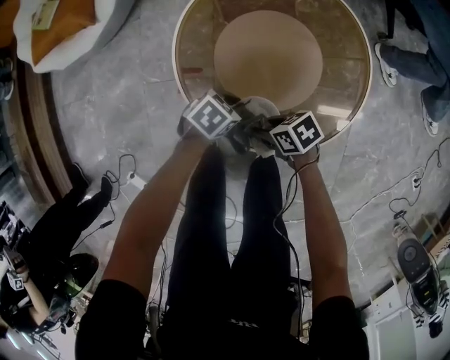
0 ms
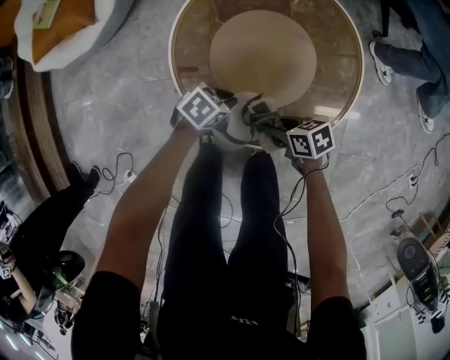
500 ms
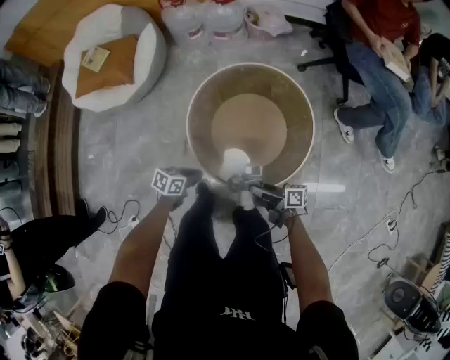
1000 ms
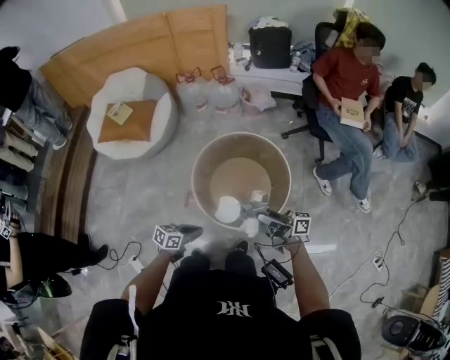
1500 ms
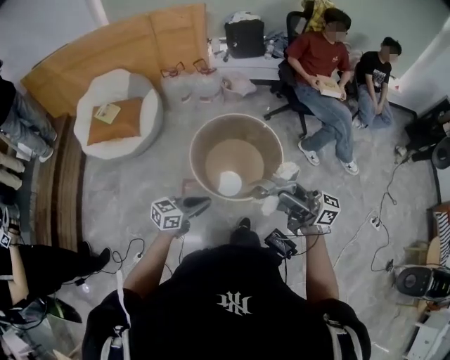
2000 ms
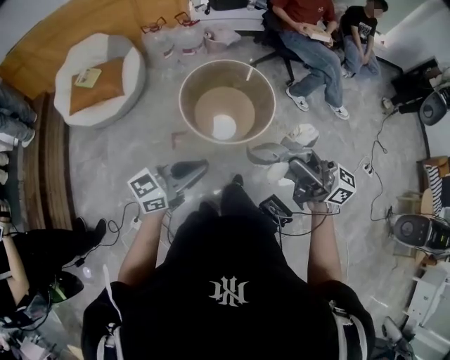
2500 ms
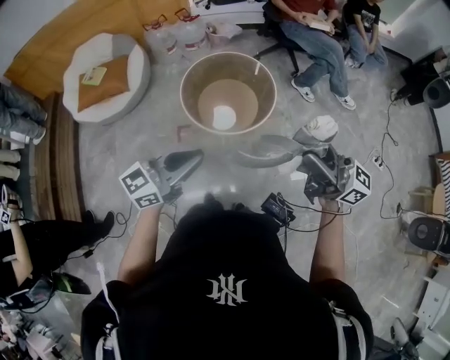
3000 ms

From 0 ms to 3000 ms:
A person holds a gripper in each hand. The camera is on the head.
From 0 ms to 1500 ms: Both grippers travel together upward, approximately 40 cm. The left gripper changes its angle by approximately 40 degrees. The right gripper points its fingers approximately 60 degrees further upward.
From 1500 ms to 3000 ms: The left gripper moves upward, roughly 30 cm, and points its fingers approximately 30 degrees further upward, while the right gripper shifts by roughly 40 cm, and twists some 40 degrees counterclockwise, seen from behind.

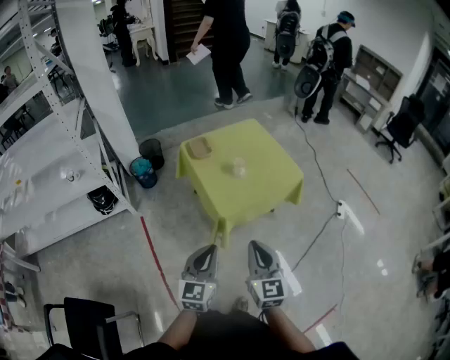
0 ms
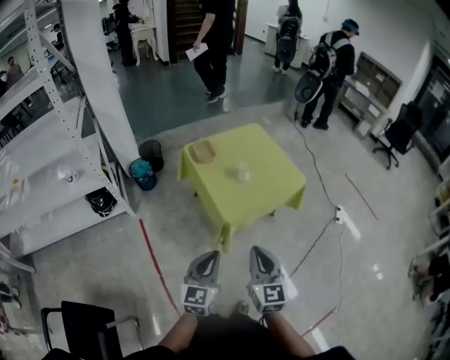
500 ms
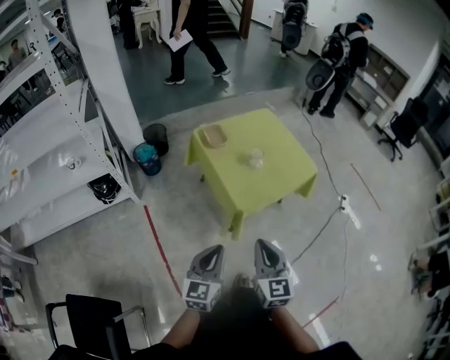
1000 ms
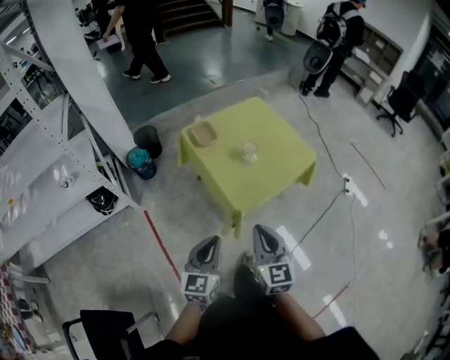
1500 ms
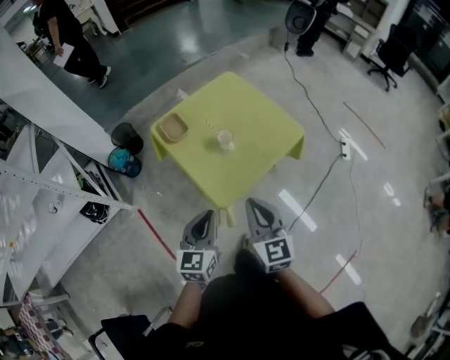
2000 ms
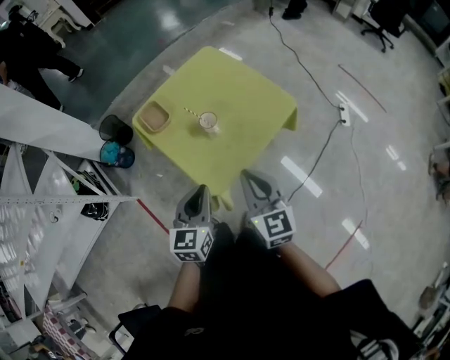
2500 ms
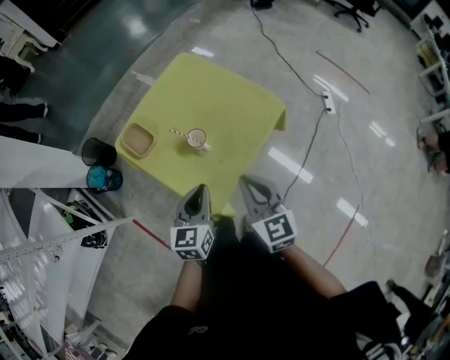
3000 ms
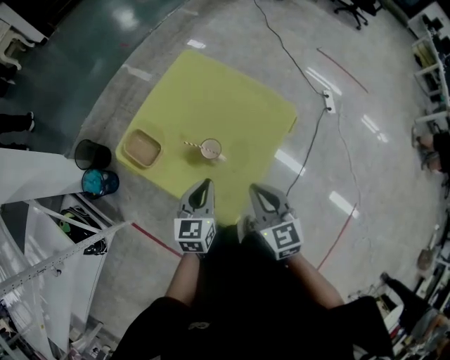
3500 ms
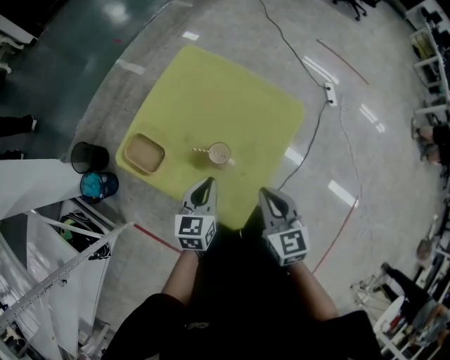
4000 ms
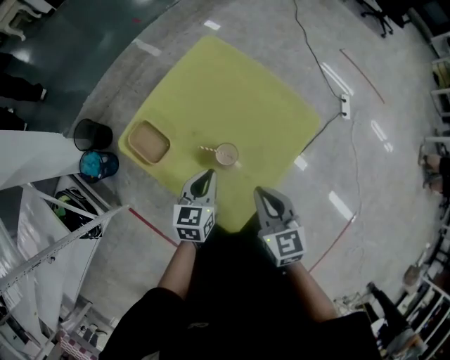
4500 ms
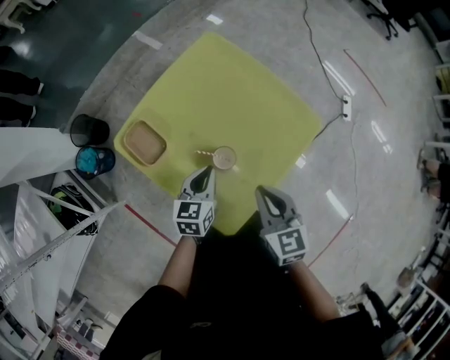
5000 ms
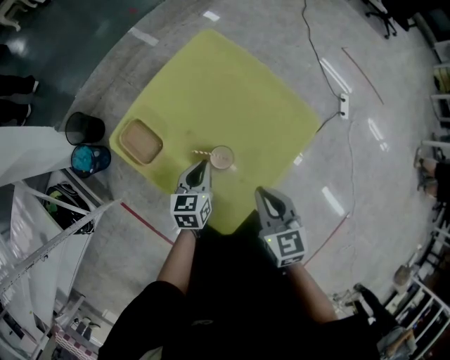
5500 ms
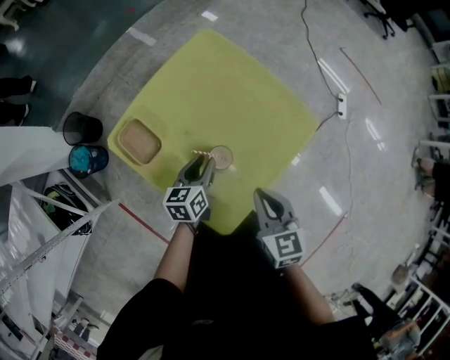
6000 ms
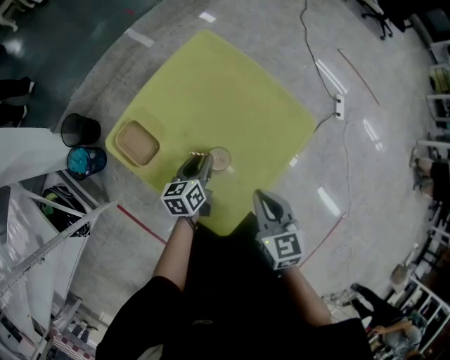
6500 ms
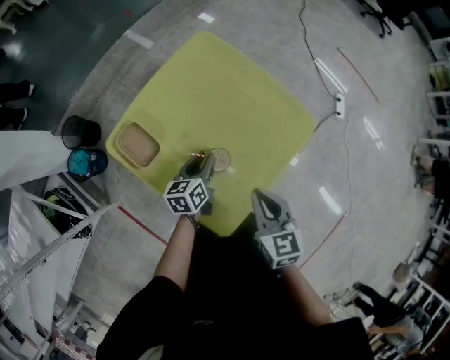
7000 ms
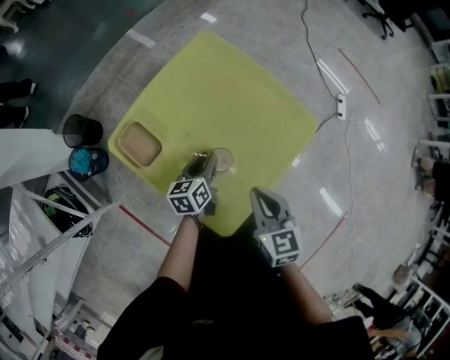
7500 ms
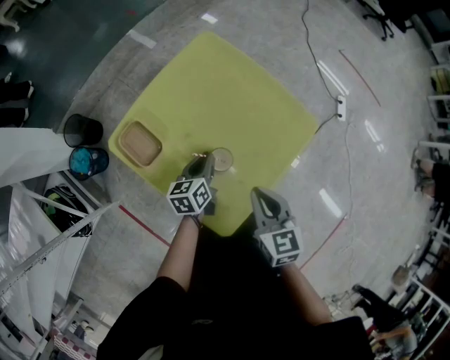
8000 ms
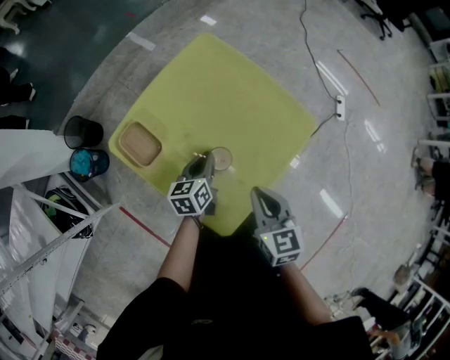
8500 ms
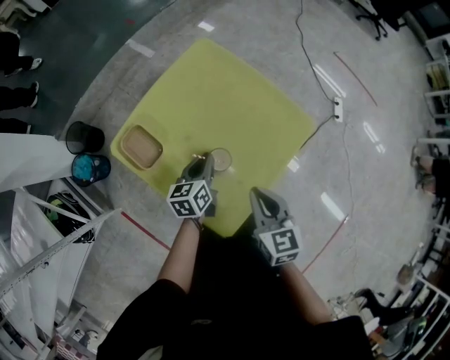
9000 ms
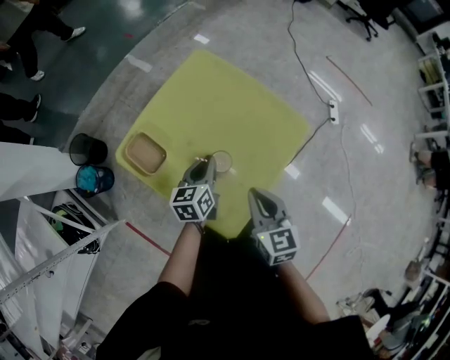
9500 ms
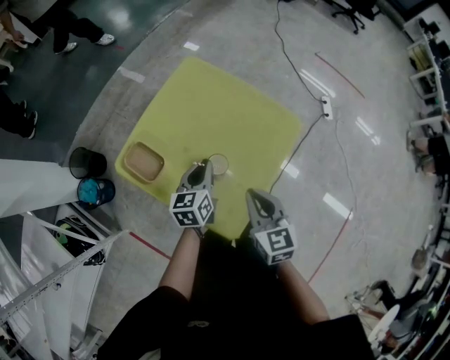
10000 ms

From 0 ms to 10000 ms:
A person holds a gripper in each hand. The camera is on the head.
From 0 ms to 2000 ms: The two grippers go roughly 20 cm forward.
From 2000 ms to 4000 ms: Both grippers move forward and downward, some 30 cm. The right gripper turns by about 20 degrees. The left gripper swivels some 30 degrees.
From 4000 ms to 6000 ms: The left gripper goes approximately 10 cm downward and forward, rotates about 20 degrees, and opens. The right gripper is displaced forward by about 5 cm.
From 6000 ms to 8000 ms: The grippers stay close to where they were, moving slightly.
From 8000 ms to 10000 ms: The right gripper ends up about 5 cm from where it was. The left gripper shifts approximately 10 cm upward.

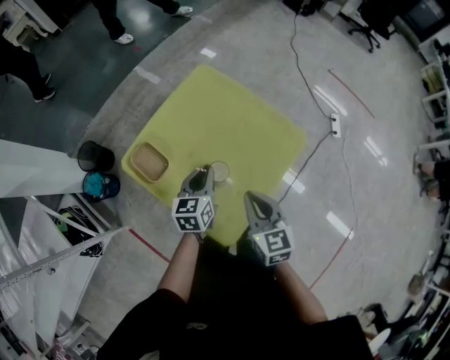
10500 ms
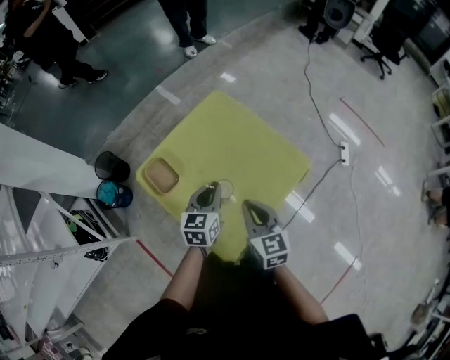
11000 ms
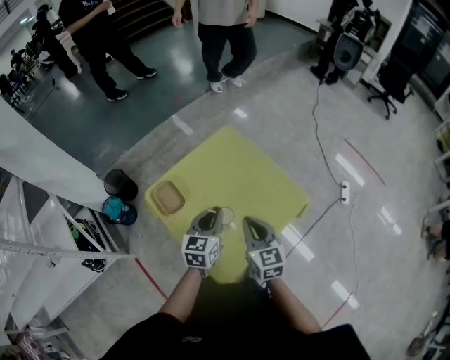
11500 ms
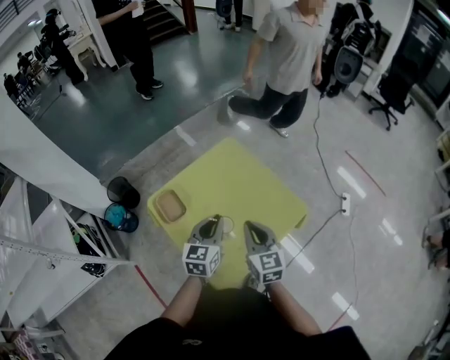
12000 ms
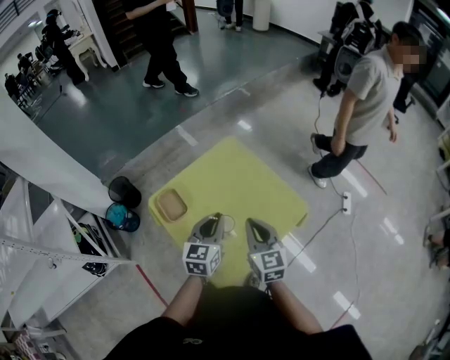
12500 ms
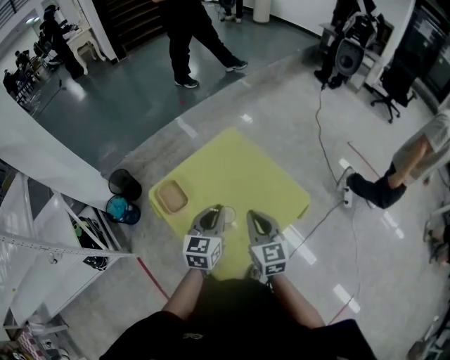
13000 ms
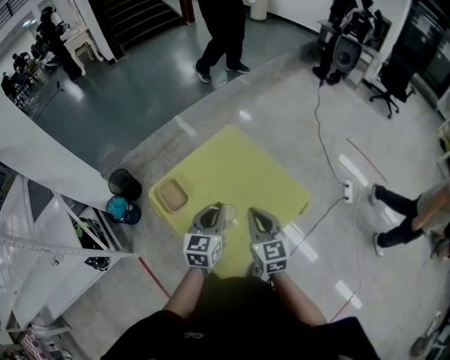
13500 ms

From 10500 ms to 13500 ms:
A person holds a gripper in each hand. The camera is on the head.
From 10500 ms to 12000 ms: The left gripper heads upward, covering roughly 10 cm. The right gripper shifts approximately 5 cm upward.
From 12000 ms to 13500 ms: Both grippers stay put.

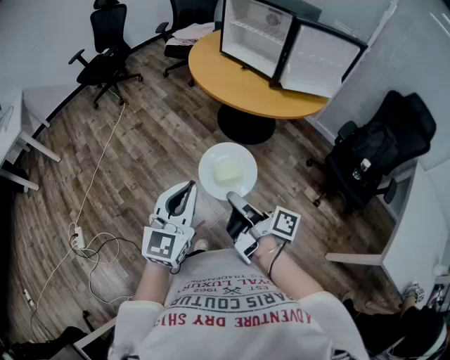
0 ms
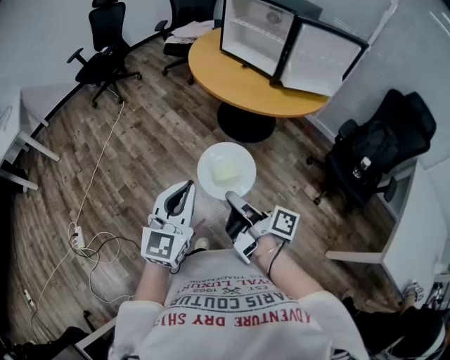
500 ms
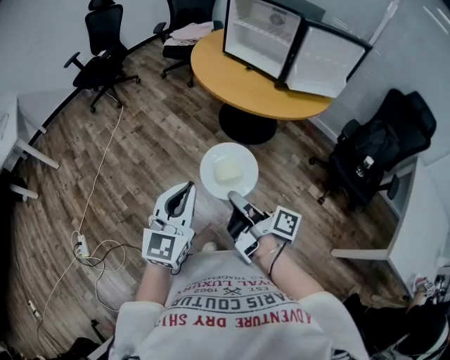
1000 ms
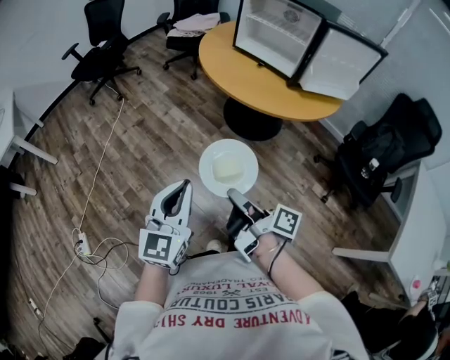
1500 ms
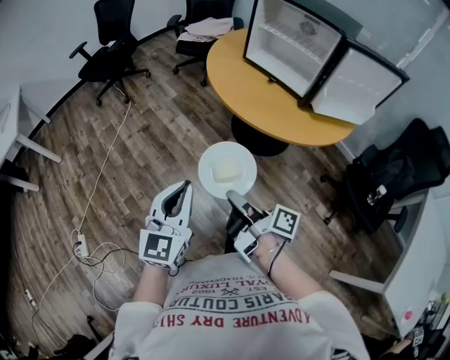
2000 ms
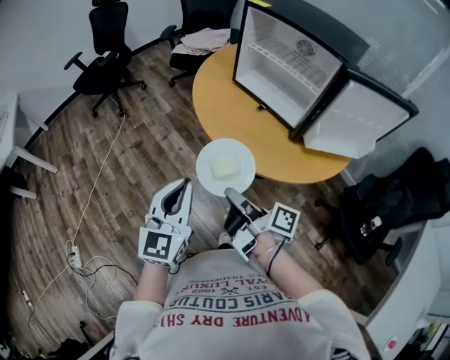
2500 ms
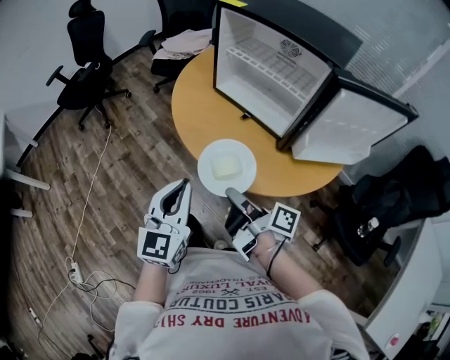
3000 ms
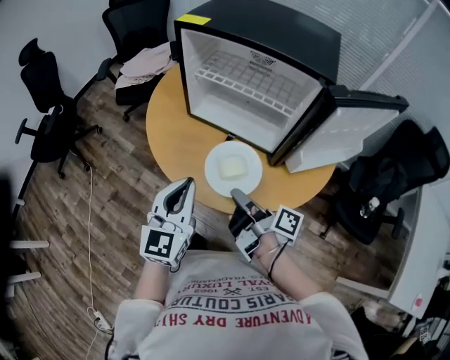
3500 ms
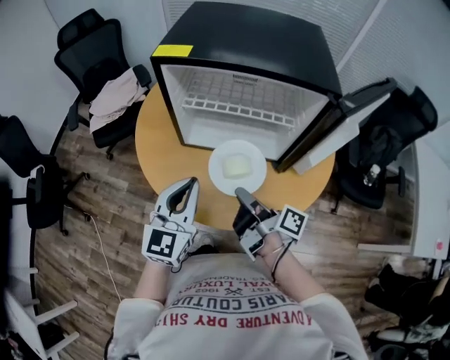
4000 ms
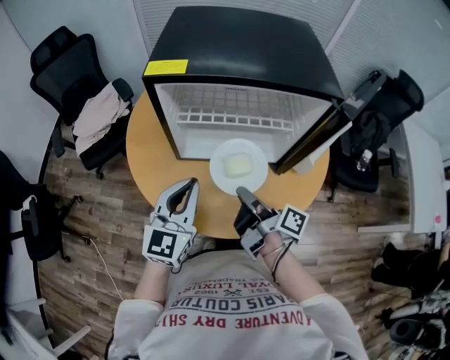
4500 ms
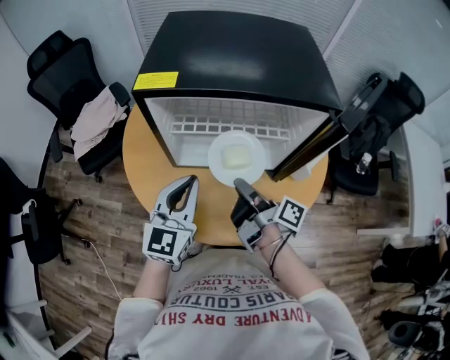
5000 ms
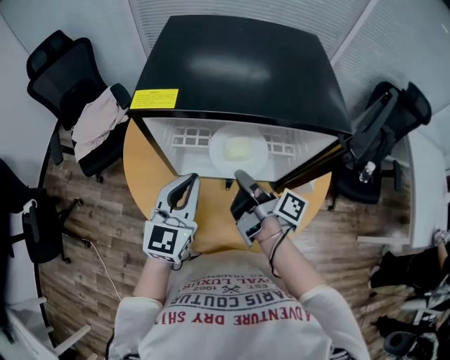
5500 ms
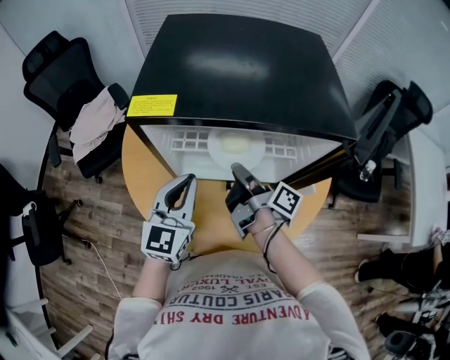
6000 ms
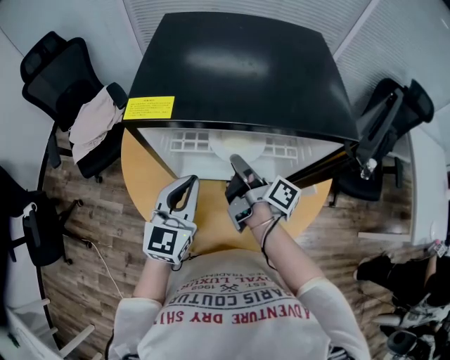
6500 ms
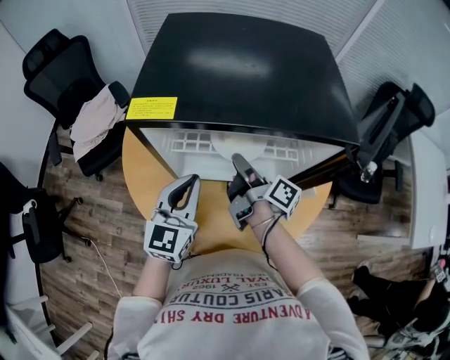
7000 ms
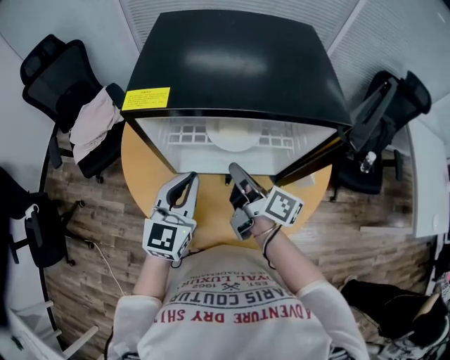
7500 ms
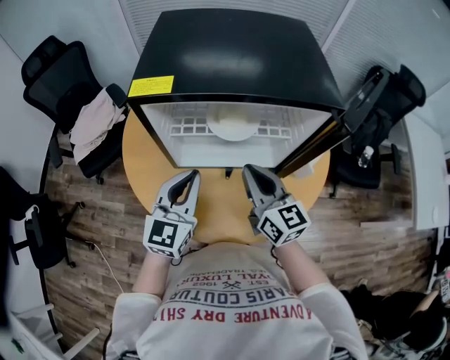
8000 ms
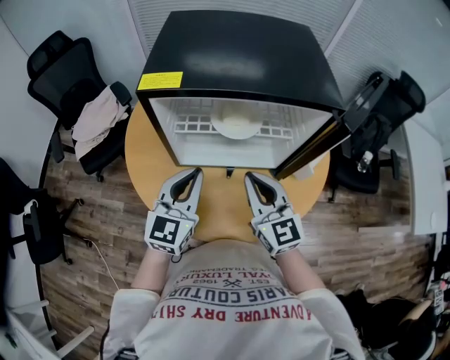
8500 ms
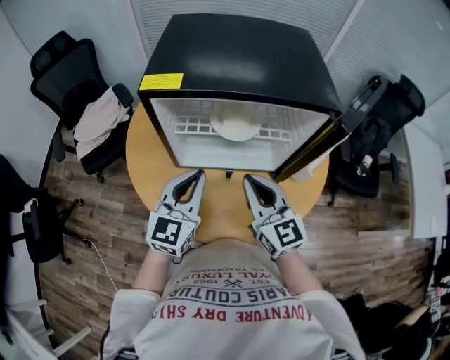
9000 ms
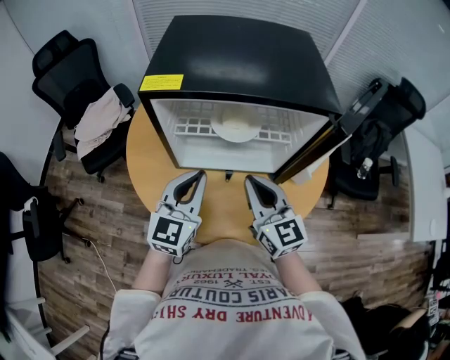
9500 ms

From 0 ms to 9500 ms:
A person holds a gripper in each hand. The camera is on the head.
From 0 ms to 2000 ms: The left gripper changes place by roughly 20 cm.
From 2000 ms to 4000 ms: The left gripper ends up roughly 50 cm from where it was, and rotates roughly 40 degrees.
From 4000 ms to 5500 ms: The left gripper moves about 15 cm.

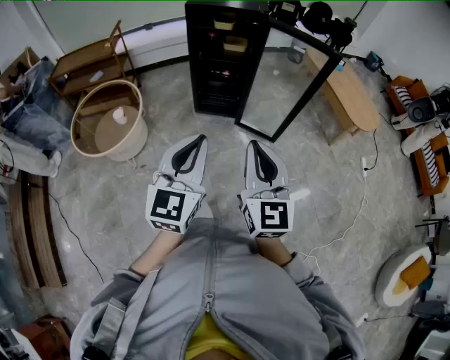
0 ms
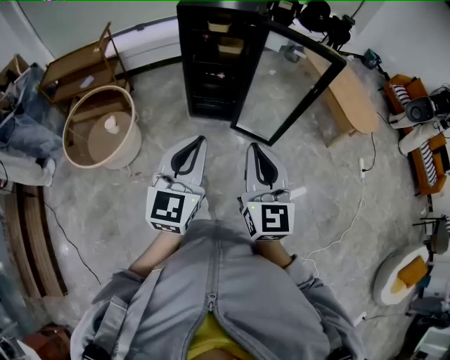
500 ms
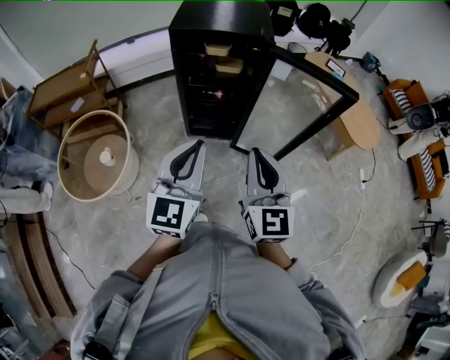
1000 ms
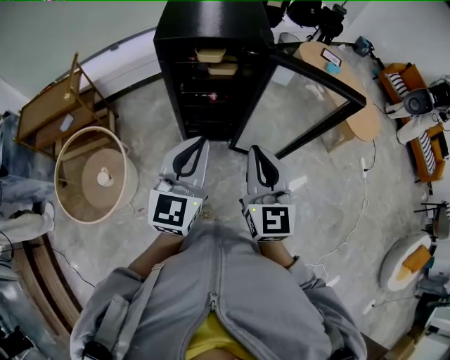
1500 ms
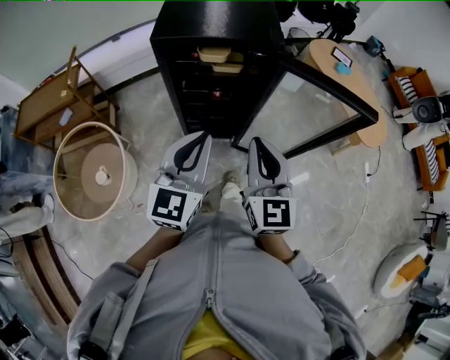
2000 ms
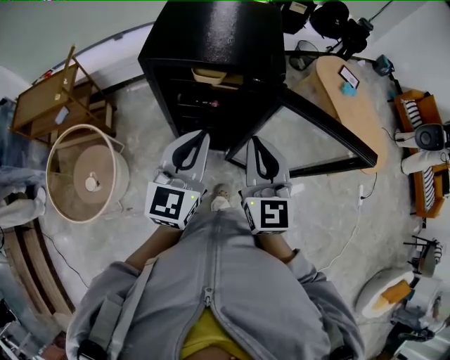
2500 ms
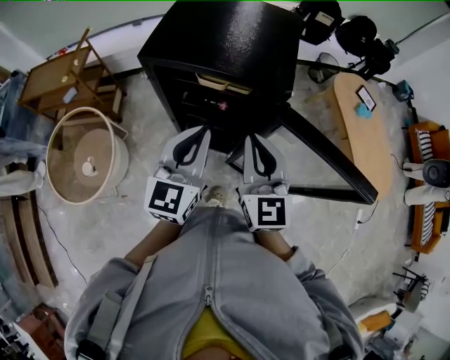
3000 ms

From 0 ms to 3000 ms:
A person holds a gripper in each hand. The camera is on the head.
From 0 ms to 1500 ms: The two grippers go some 35 cm forward.
From 1500 ms to 3000 ms: Both grippers travel together forward, about 25 cm.
